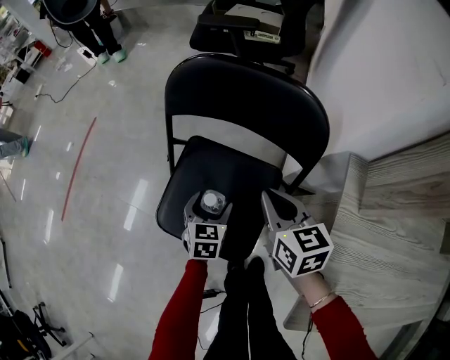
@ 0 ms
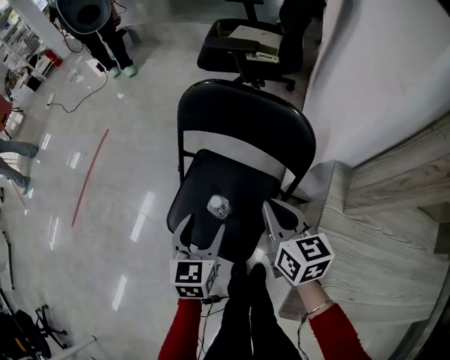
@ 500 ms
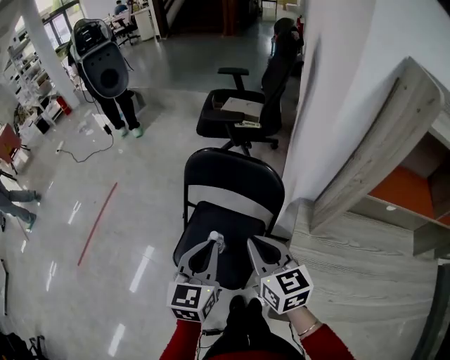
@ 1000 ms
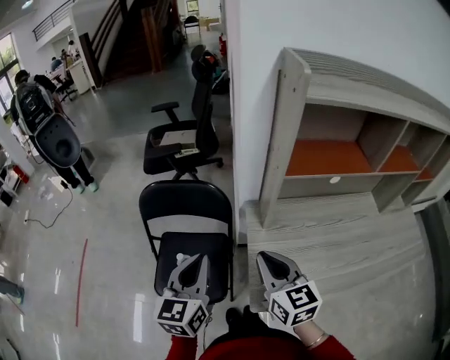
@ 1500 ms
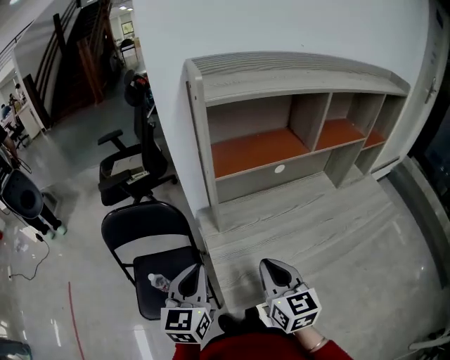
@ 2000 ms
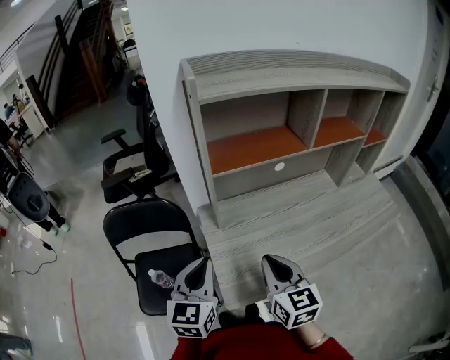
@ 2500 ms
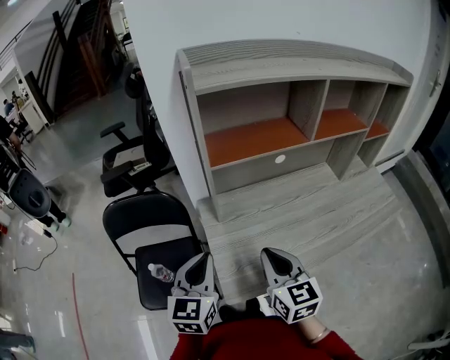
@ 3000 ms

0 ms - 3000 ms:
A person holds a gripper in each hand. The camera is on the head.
0 ms - 1500 ms: The left gripper heads upward, covering roughly 40 cm, tilts its fingers approximately 30 degrees upward, and closes. Meanwhile the right gripper shifts about 25 cm upward, and turns by approximately 30 degrees.
1500 ms - 3000 ms: Both grippers move to the right, about 15 cm.

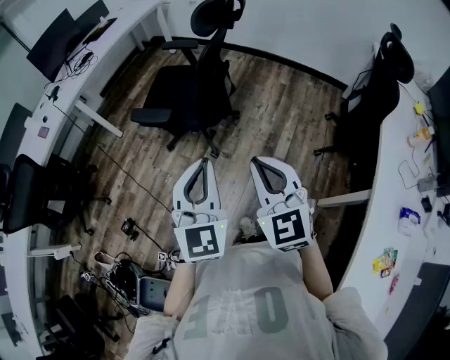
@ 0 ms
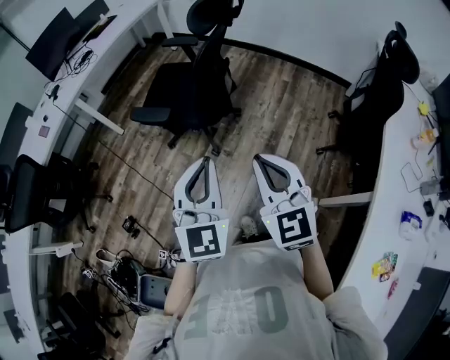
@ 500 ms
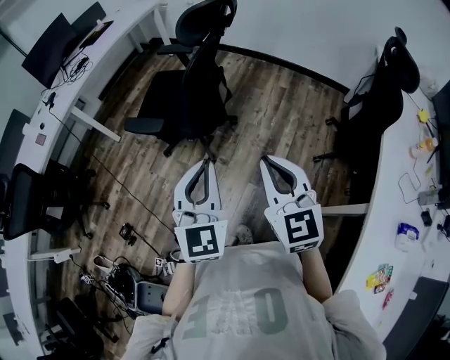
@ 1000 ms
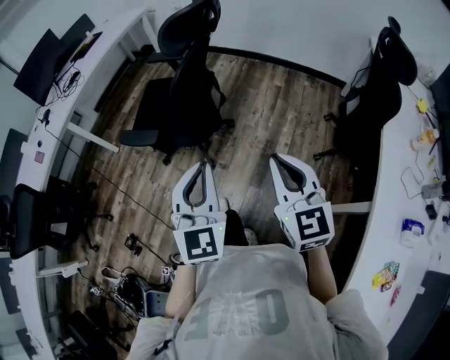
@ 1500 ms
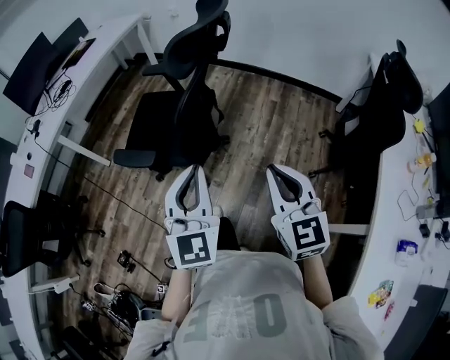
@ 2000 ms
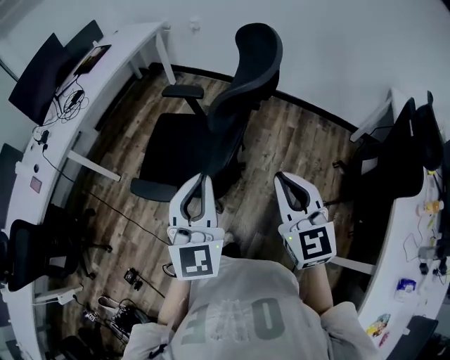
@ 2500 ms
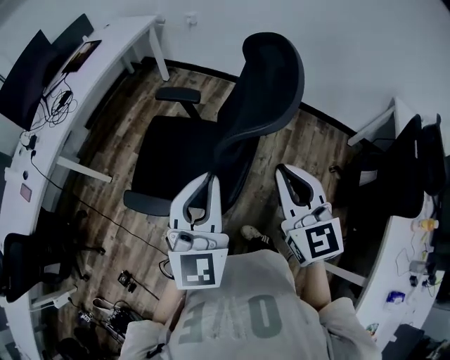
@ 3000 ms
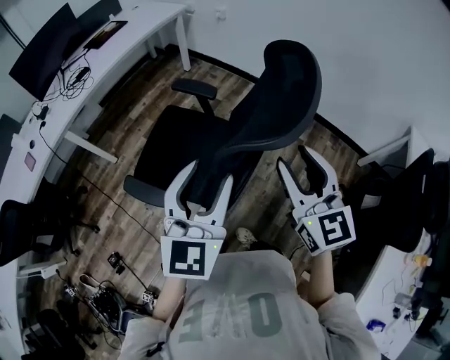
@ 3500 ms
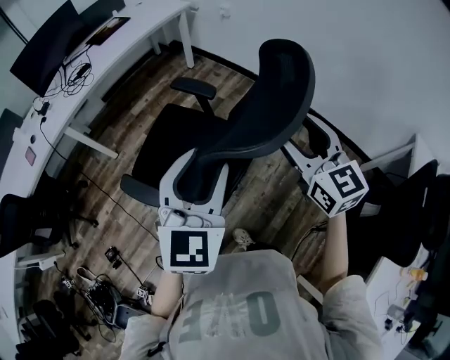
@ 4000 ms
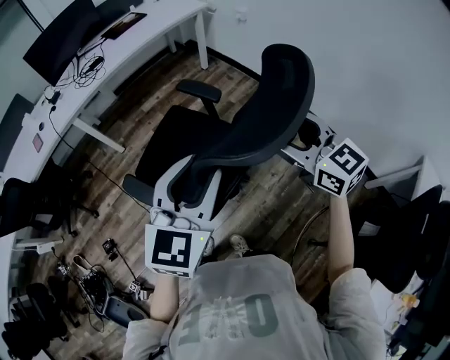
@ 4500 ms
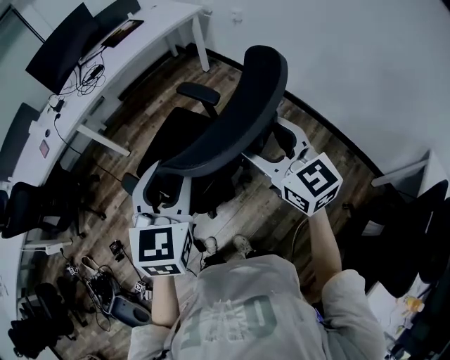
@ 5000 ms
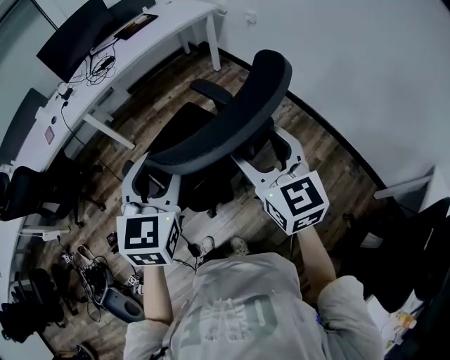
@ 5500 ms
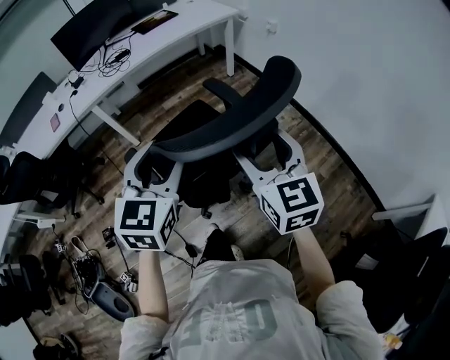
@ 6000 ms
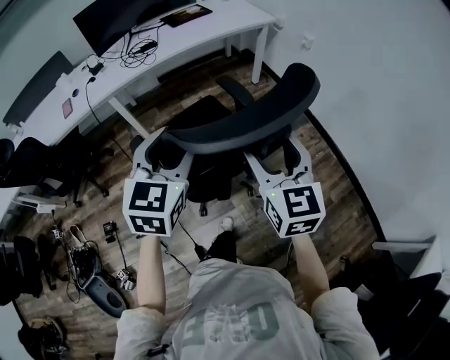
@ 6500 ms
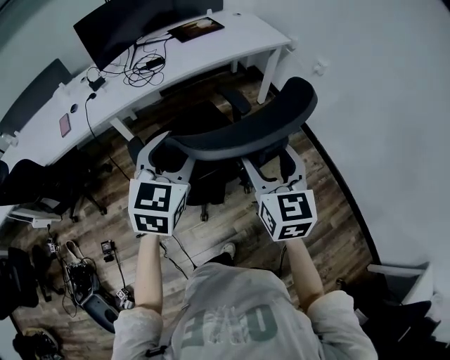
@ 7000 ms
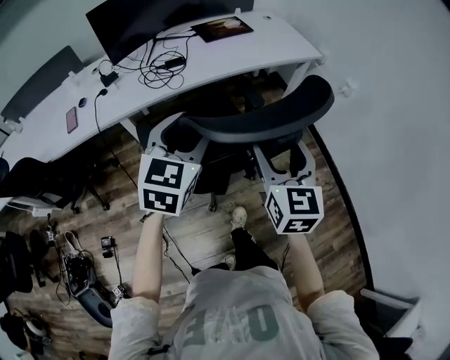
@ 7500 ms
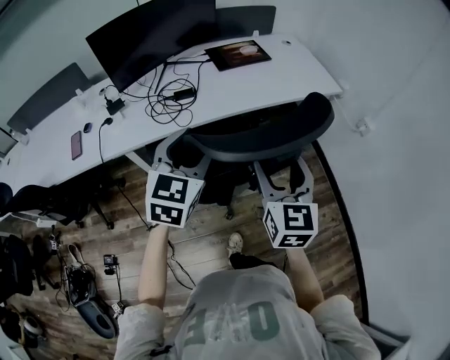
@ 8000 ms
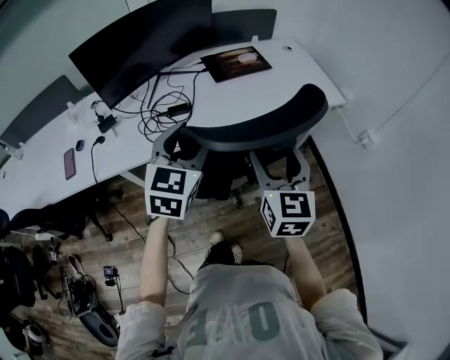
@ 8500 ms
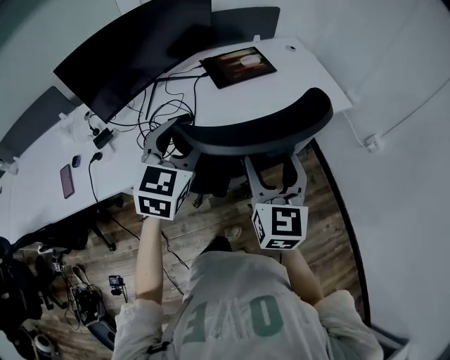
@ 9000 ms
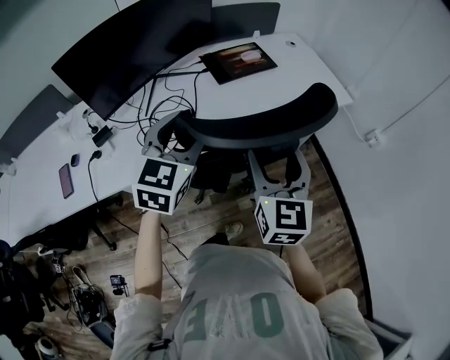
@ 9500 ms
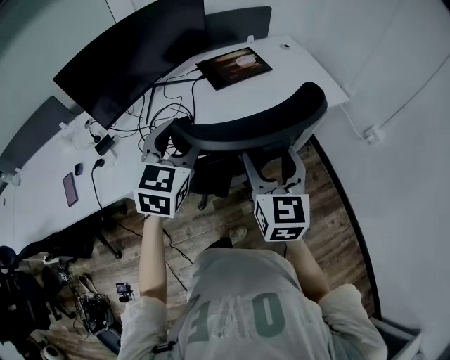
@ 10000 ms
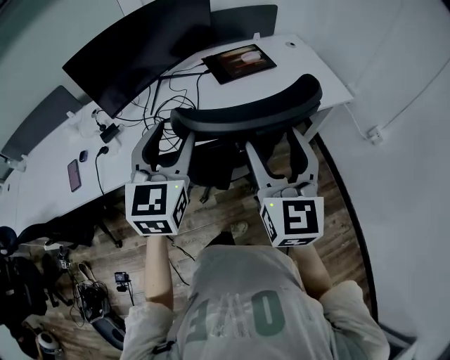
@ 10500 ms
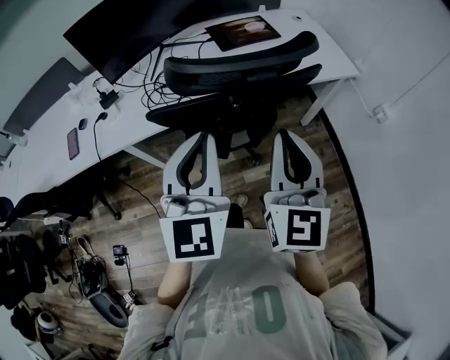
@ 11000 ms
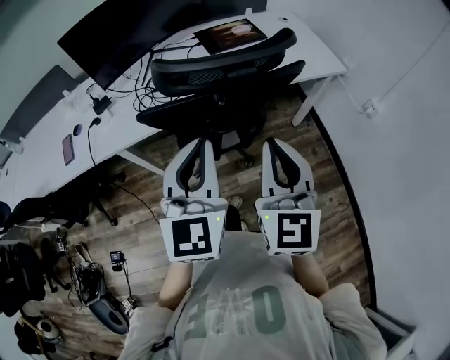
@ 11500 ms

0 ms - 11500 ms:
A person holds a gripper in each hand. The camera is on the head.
0 ms - 2000 ms: The right gripper shifts roughly 20 cm forward and to the right, while the left gripper goes roughly 15 cm forward.
2000 ms - 4000 ms: The two grippers go roughly 35 cm forward. The right gripper swivels roughly 20 degrees, and opens up. The left gripper opens its fingers.
4000 ms - 6000 ms: The left gripper heads forward and to the left, covering about 10 cm, and rotates approximately 20 degrees; the right gripper goes roughly 10 cm to the left and forward.
6000 ms - 7500 ms: The two grippers travel together, forward and to the left, approximately 40 cm.
7500 ms - 9500 ms: The two grippers go approximately 35 cm forward.
9500 ms - 11500 ms: The right gripper heads backward, covering approximately 15 cm, and closes up. Meanwhile the left gripper goes roughly 20 cm backward and to the right, changes its angle by roughly 20 degrees, and closes up.

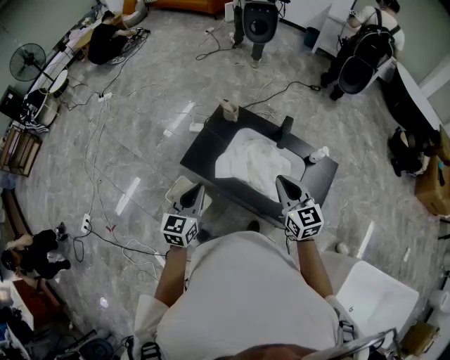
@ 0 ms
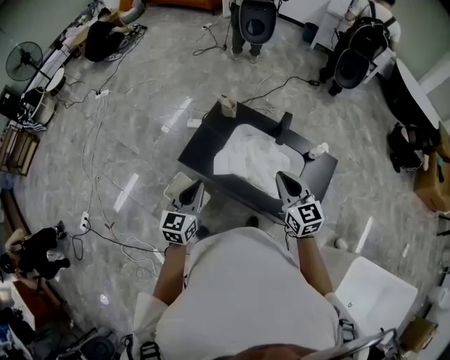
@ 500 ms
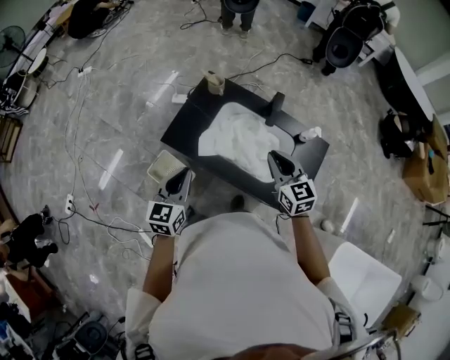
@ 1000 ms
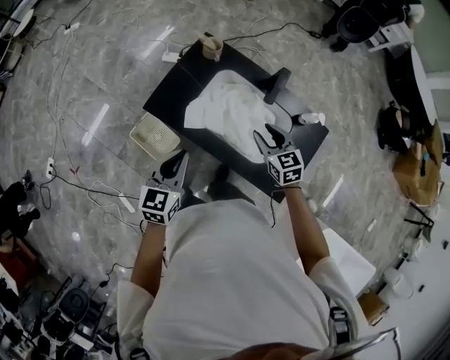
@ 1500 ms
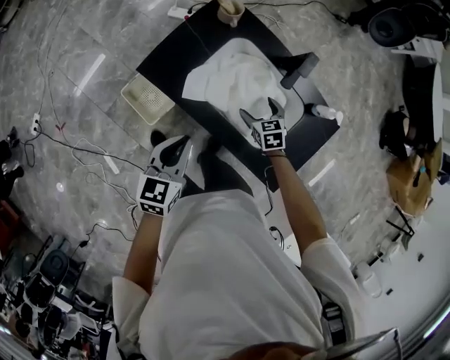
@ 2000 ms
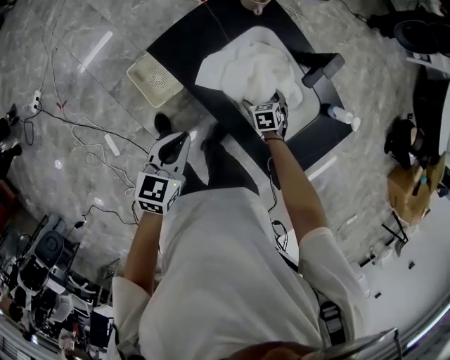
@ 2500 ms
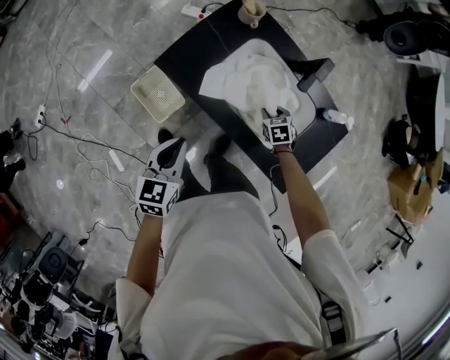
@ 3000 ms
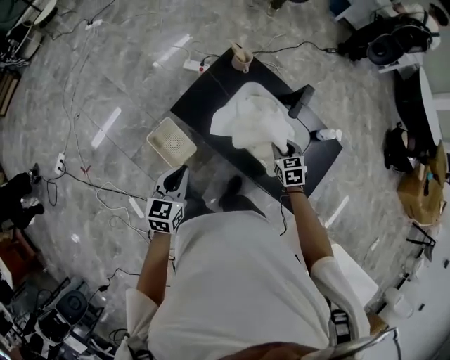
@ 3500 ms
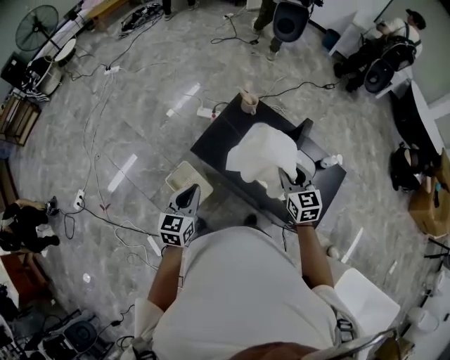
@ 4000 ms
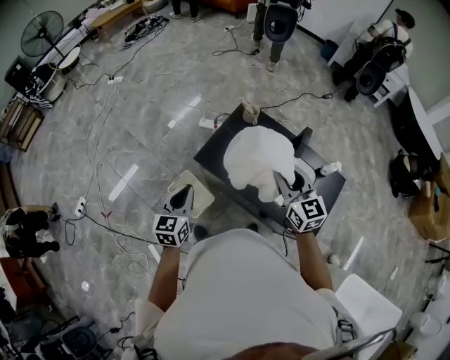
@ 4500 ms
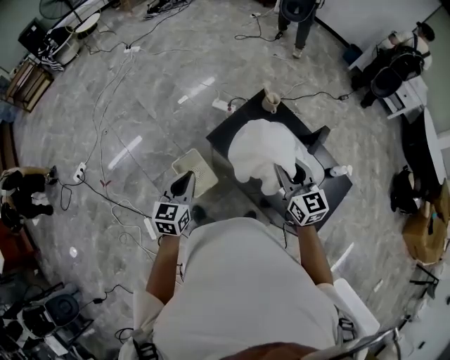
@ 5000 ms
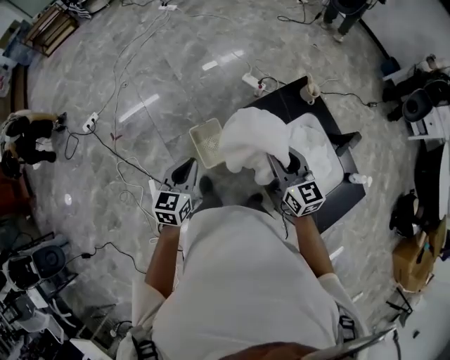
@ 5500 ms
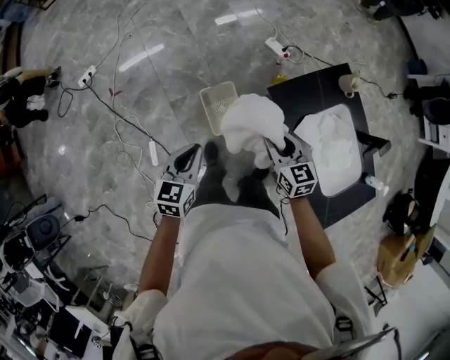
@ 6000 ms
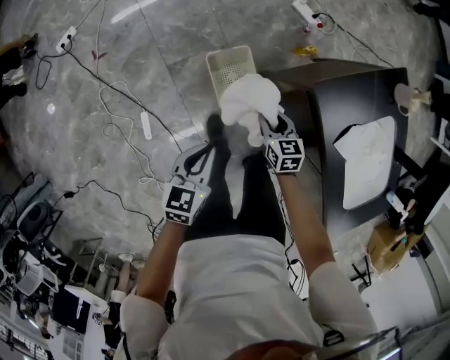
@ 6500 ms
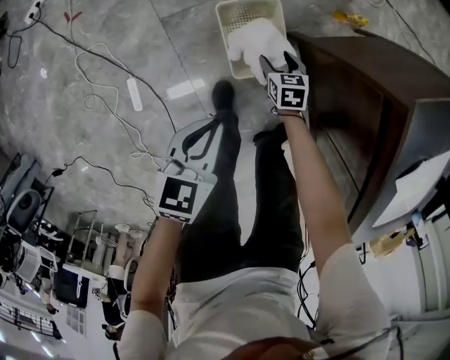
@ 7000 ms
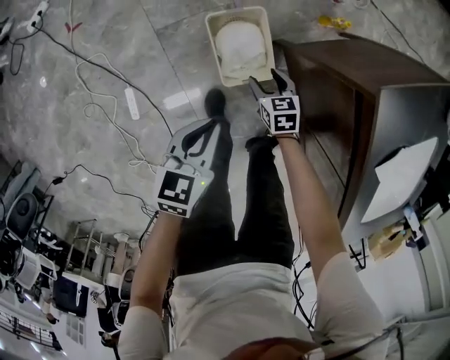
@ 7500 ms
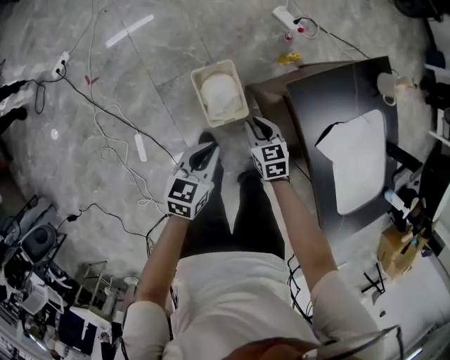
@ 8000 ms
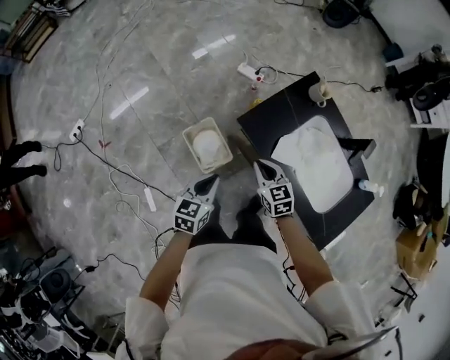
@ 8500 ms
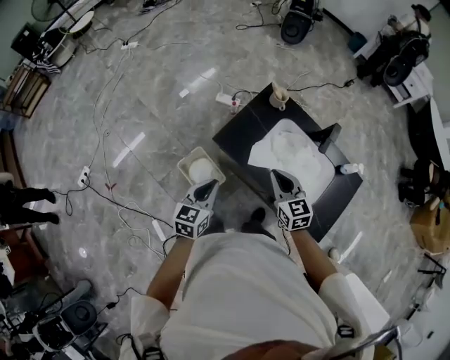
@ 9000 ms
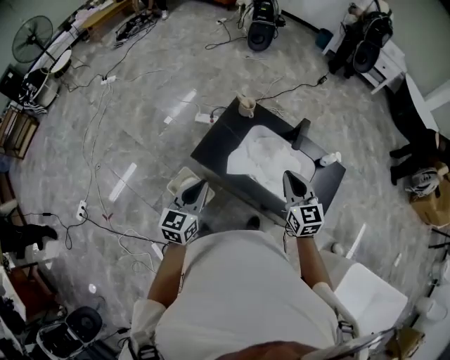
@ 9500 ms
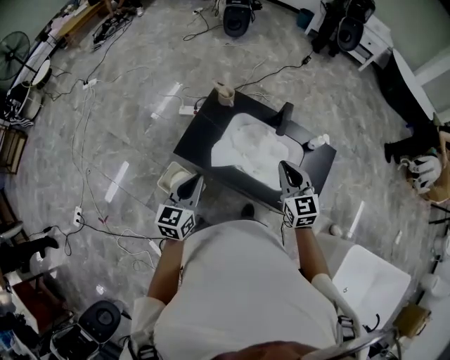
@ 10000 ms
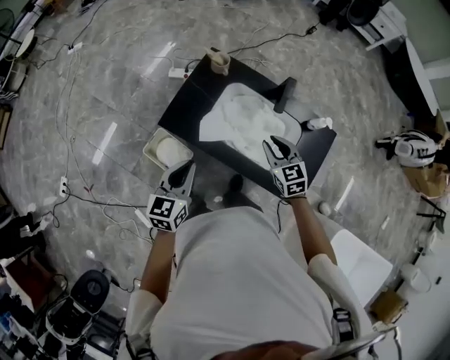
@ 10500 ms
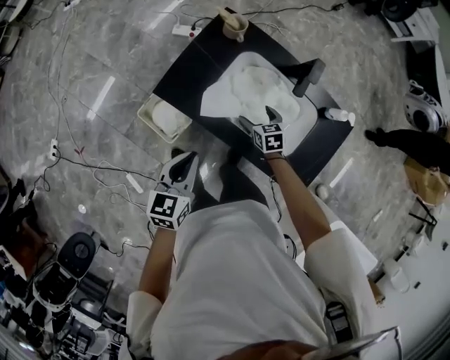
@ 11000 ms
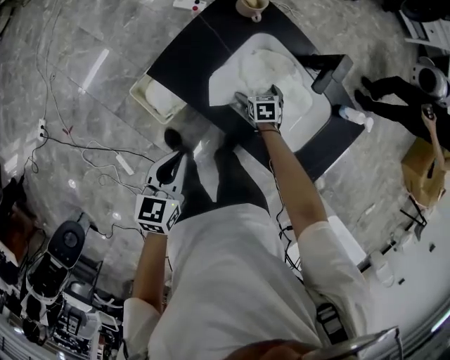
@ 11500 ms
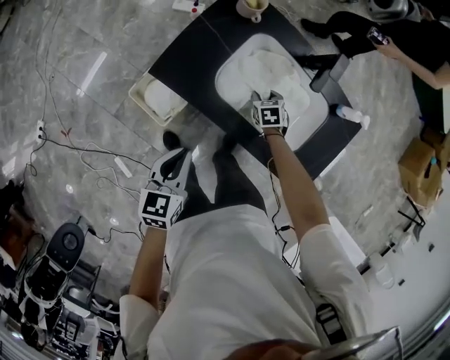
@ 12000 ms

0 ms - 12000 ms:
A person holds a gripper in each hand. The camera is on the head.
0 ms - 2000 ms: The right gripper goes approximately 35 cm downward, points its fingers approximately 40 degrees further downward, and opens up; the left gripper goes about 15 cm downward and to the right.
2000 ms - 4000 ms: The left gripper shifts about 20 cm to the left and upward; the right gripper is displaced upward by approximately 30 cm, turns by roughly 30 degrees, and closes its fingers.
4000 ms - 6000 ms: The left gripper moves some 30 cm, and turns by about 30 degrees. Meanwhile the right gripper ends up approximately 40 cm from where it was, and rotates roughly 40 degrees.
6000 ms - 8000 ms: Both grippers travel together downward, approximately 30 cm.
8000 ms - 10000 ms: Both grippers travel together upward, about 50 cm. The left gripper swivels about 40 degrees, while the right gripper changes its angle by approximately 50 degrees.
10000 ms - 12000 ms: The right gripper goes about 50 cm downward, tilts its fingers some 50 degrees downward, and opens, then closes again, while the left gripper shifts some 20 cm downward, and turns by some 20 degrees.
